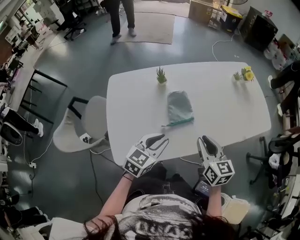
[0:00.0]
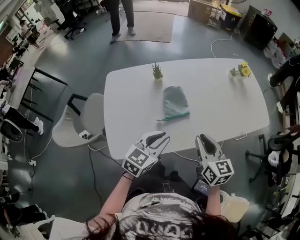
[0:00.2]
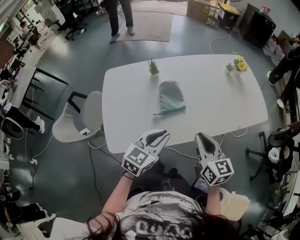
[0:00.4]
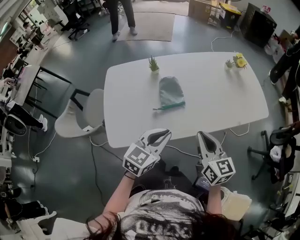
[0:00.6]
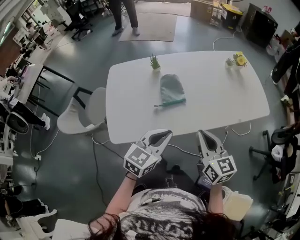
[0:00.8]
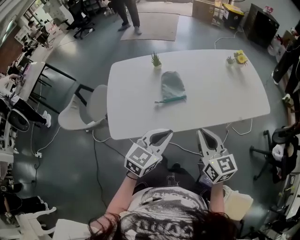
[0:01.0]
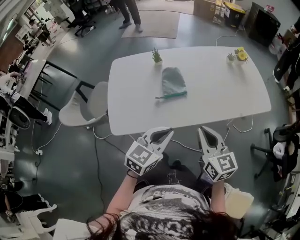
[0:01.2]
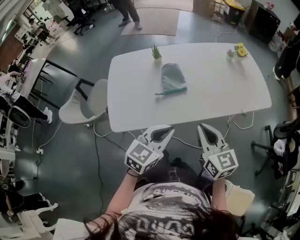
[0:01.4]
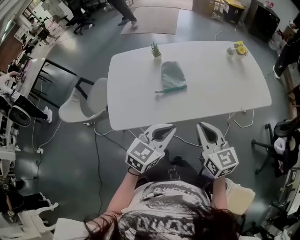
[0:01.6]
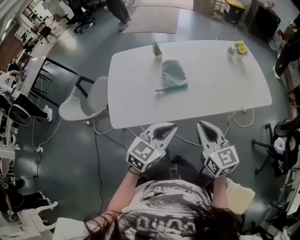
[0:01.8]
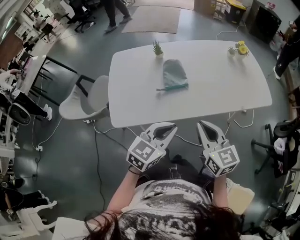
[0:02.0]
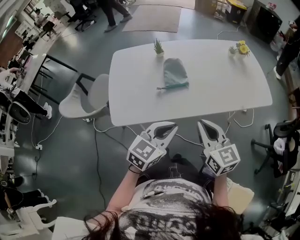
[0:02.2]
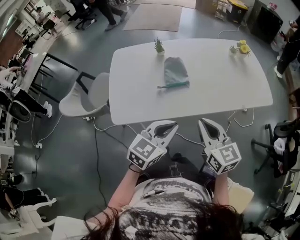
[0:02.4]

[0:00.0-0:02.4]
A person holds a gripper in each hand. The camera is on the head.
0:00.0 to 0:01.2: The right gripper is displaced backward by roughly 10 cm, while the left gripper is displaced backward, to the right and upward by approximately 15 cm.
0:01.2 to 0:02.4: The grippers make only small movements.

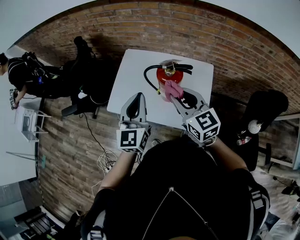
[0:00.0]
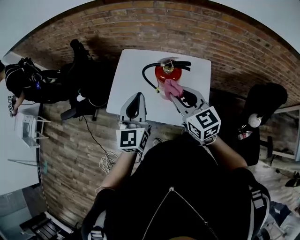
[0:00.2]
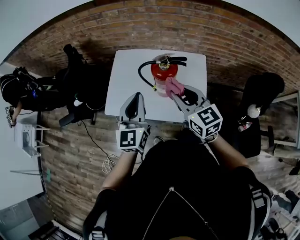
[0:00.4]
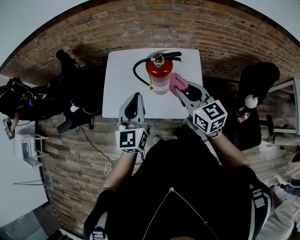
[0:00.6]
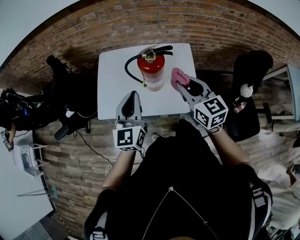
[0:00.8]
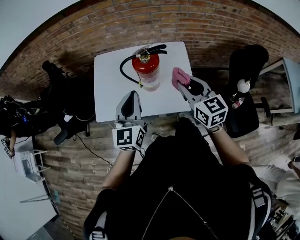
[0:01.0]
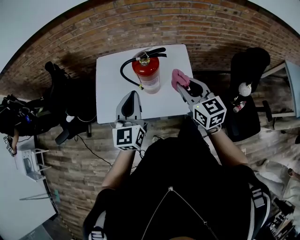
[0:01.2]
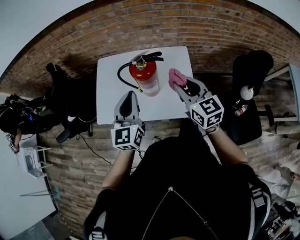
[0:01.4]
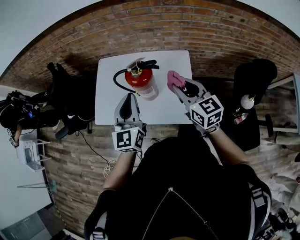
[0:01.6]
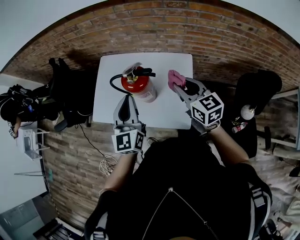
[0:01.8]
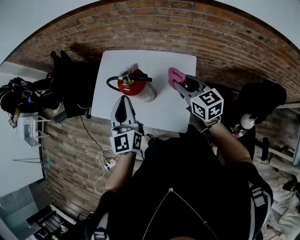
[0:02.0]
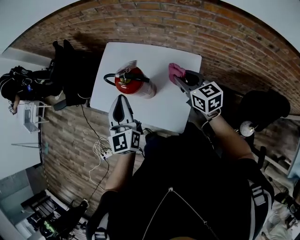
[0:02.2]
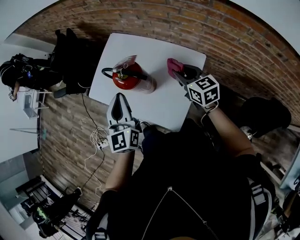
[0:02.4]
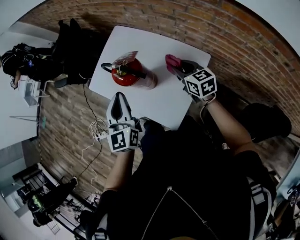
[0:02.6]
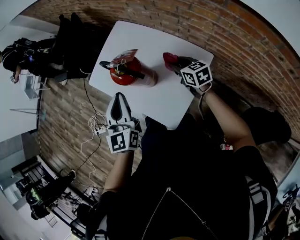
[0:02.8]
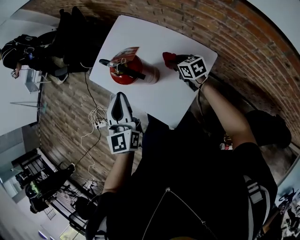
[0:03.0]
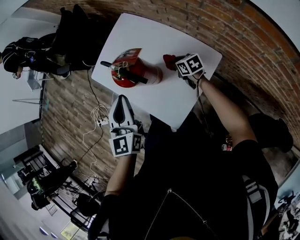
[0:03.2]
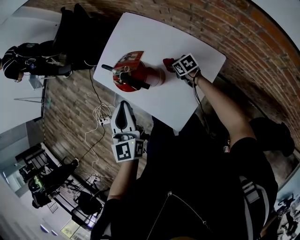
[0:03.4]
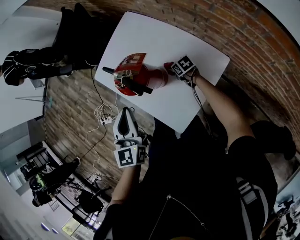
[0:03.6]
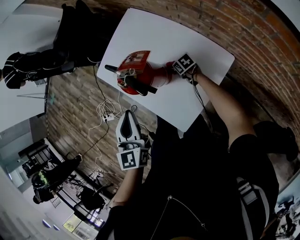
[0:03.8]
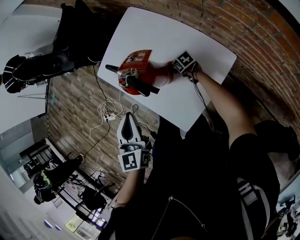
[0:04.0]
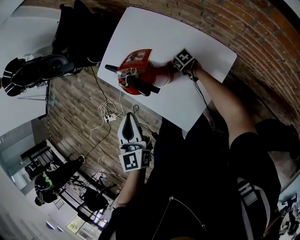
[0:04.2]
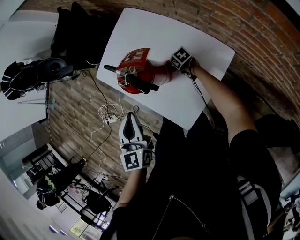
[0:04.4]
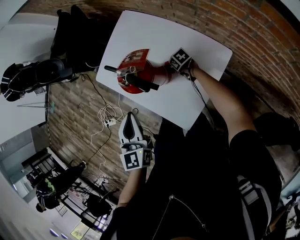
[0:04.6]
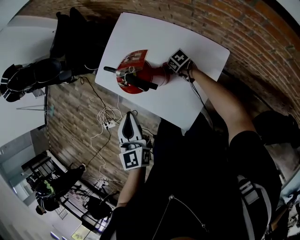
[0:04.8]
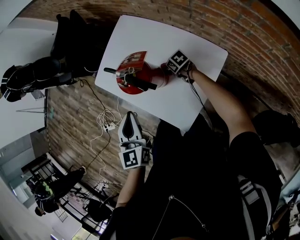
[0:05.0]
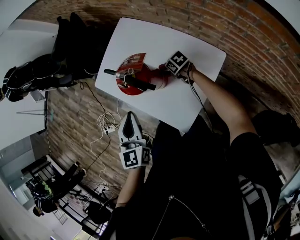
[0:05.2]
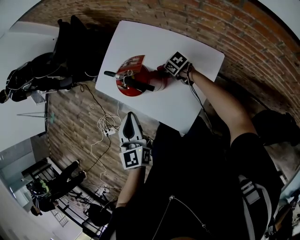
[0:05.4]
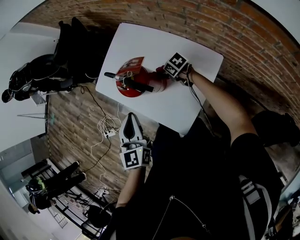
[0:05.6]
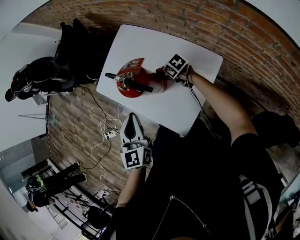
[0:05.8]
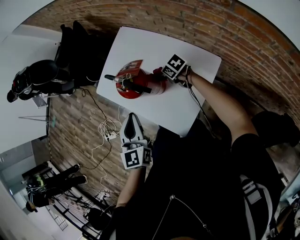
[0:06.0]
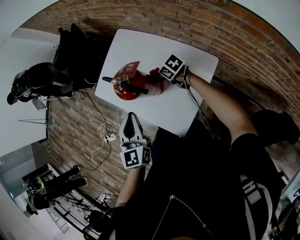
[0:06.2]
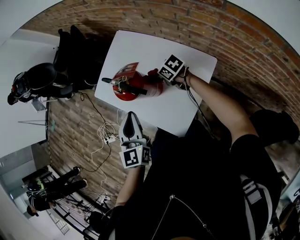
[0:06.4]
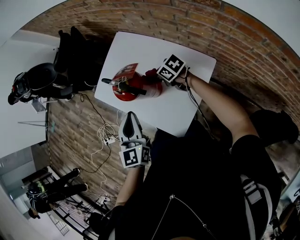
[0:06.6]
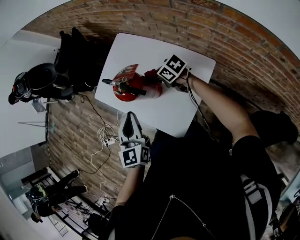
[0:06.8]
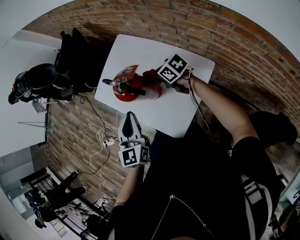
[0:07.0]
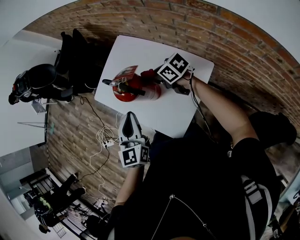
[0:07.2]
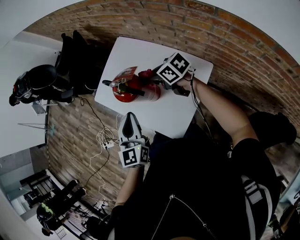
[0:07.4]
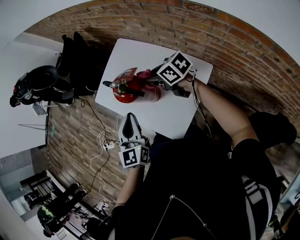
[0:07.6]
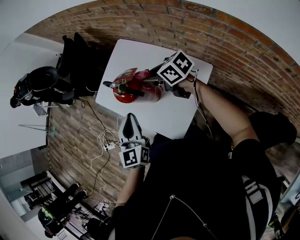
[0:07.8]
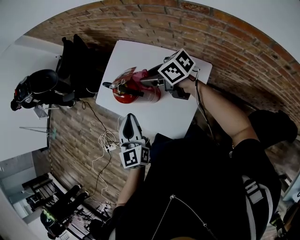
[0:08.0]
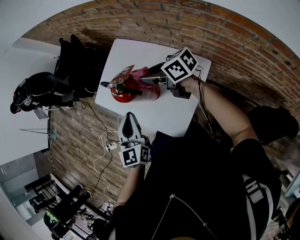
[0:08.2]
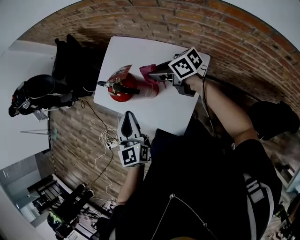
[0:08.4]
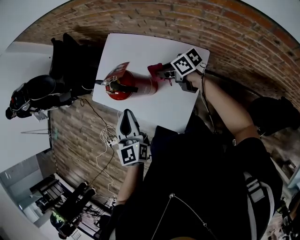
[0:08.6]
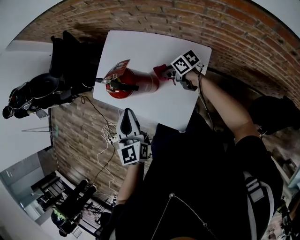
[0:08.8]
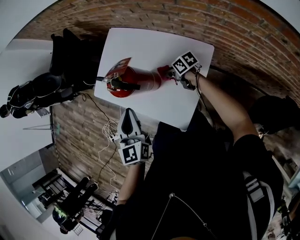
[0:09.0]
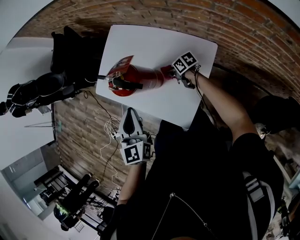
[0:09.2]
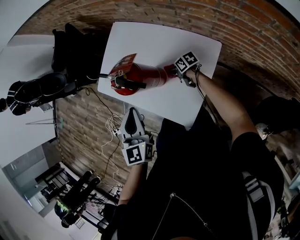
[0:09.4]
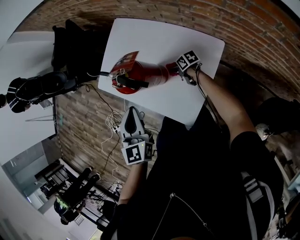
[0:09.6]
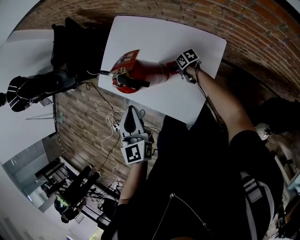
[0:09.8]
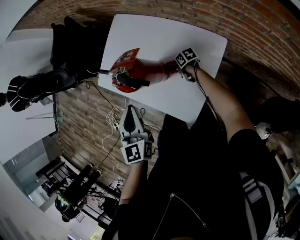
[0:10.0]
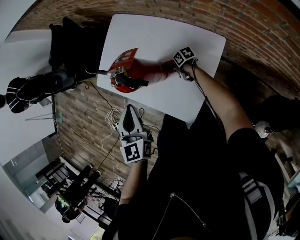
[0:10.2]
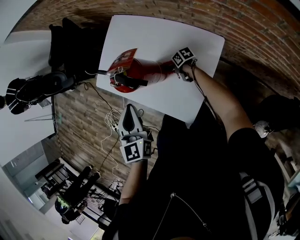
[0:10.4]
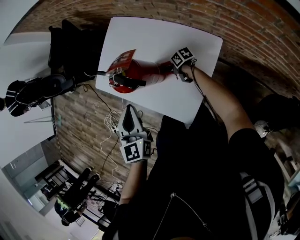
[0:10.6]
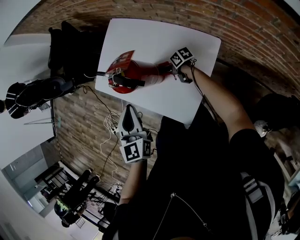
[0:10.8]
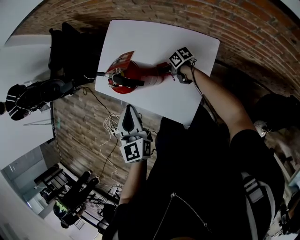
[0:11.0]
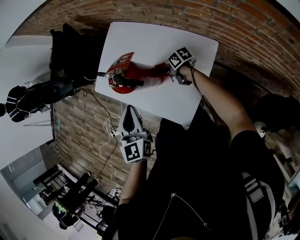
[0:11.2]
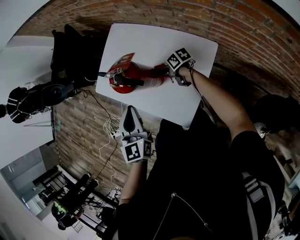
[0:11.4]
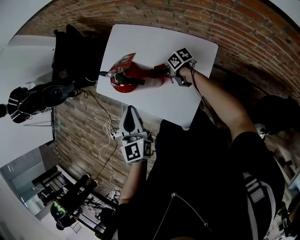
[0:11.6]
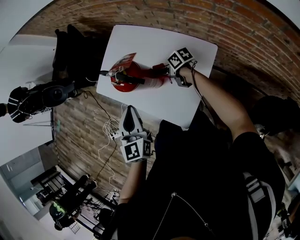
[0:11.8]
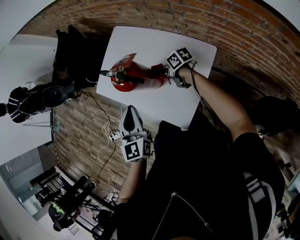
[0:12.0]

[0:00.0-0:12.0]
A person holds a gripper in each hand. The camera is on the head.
0:00.0 to 0:01.6: The left gripper moves to the right, roughly 10 cm. Meanwhile the right gripper moves to the right, roughly 15 cm.
0:01.6 to 0:03.0: The right gripper shifts about 25 cm downward, and rotates approximately 50 degrees. The left gripper moves some 10 cm, and rotates some 40 degrees.
0:03.0 to 0:04.4: The right gripper moves downward, approximately 20 cm, and turns by approximately 30 degrees. Meanwhile the left gripper is displaced downward and to the left by roughly 10 cm.
0:04.4 to 0:06.0: The right gripper travels upward by about 15 cm.
0:06.0 to 0:07.6: The right gripper travels upward by about 20 cm.
0:07.6 to 0:09.0: The right gripper shifts roughly 20 cm downward, and changes its angle by approximately 30 degrees.
0:09.0 to 0:10.4: The right gripper shifts approximately 10 cm downward.
0:10.4 to 0:12.0: The right gripper shifts approximately 15 cm upward.

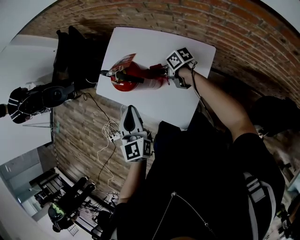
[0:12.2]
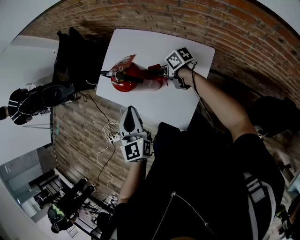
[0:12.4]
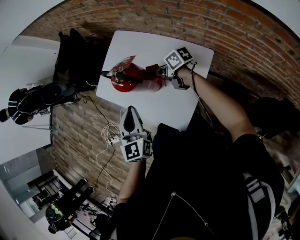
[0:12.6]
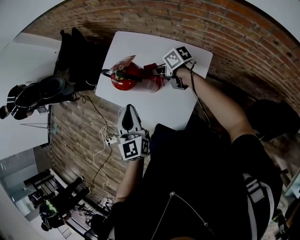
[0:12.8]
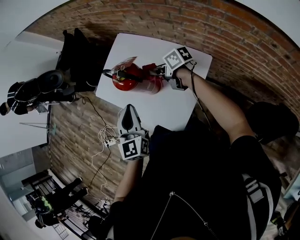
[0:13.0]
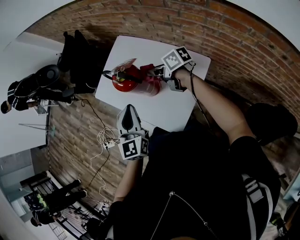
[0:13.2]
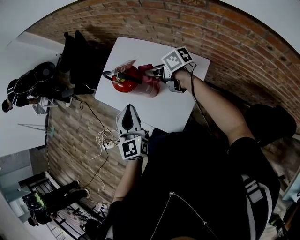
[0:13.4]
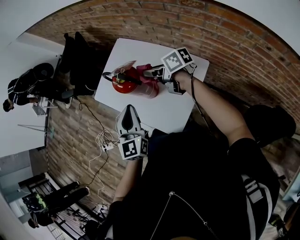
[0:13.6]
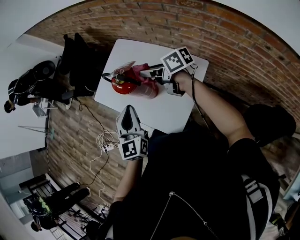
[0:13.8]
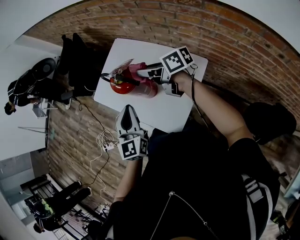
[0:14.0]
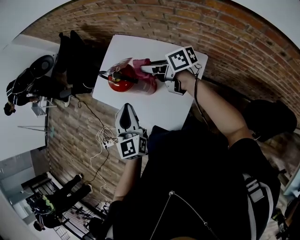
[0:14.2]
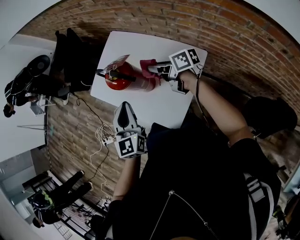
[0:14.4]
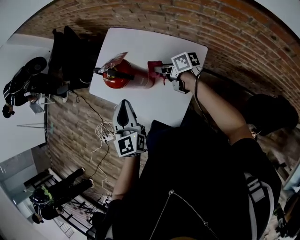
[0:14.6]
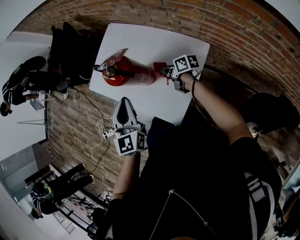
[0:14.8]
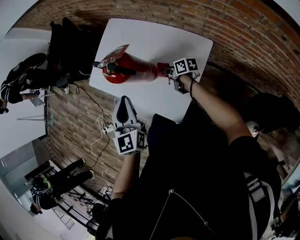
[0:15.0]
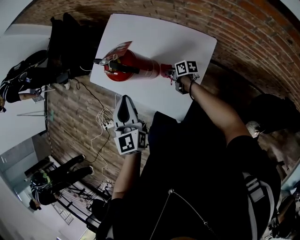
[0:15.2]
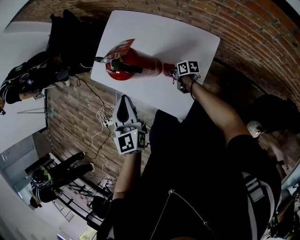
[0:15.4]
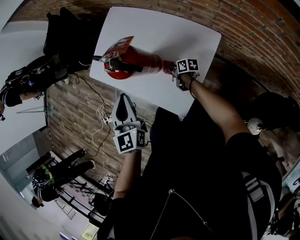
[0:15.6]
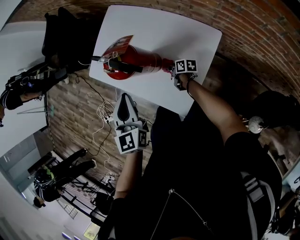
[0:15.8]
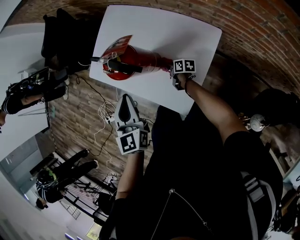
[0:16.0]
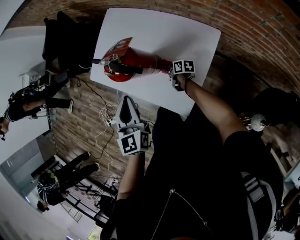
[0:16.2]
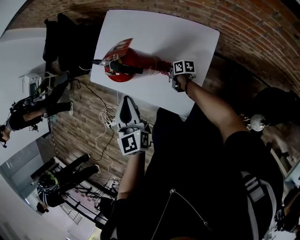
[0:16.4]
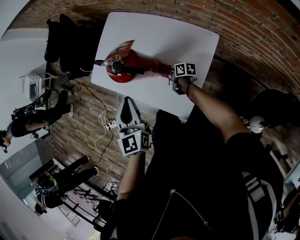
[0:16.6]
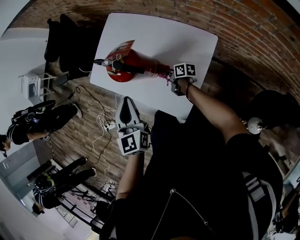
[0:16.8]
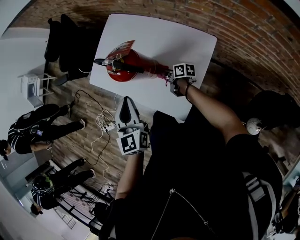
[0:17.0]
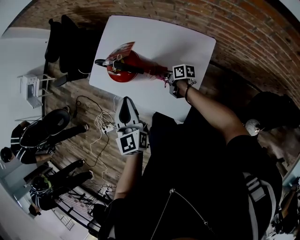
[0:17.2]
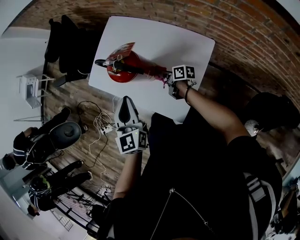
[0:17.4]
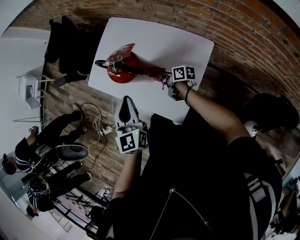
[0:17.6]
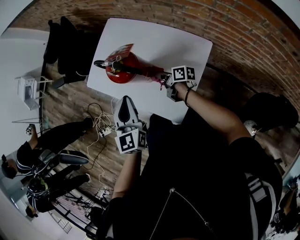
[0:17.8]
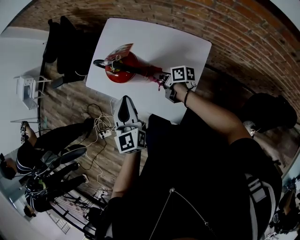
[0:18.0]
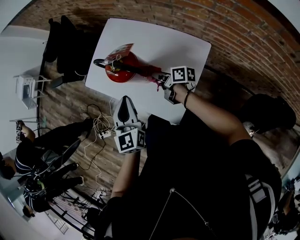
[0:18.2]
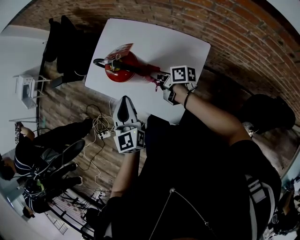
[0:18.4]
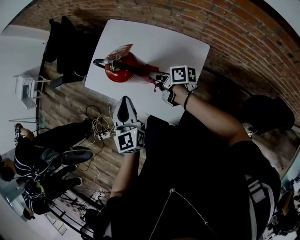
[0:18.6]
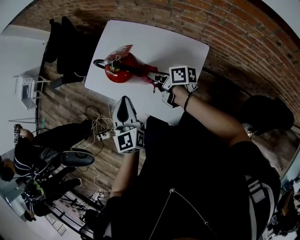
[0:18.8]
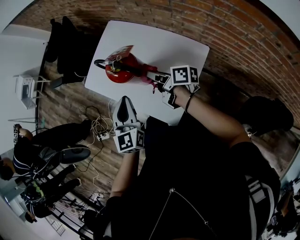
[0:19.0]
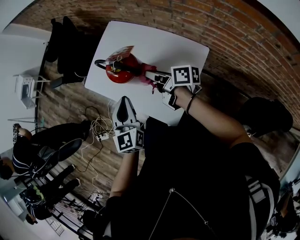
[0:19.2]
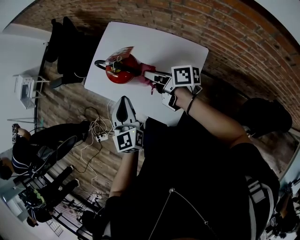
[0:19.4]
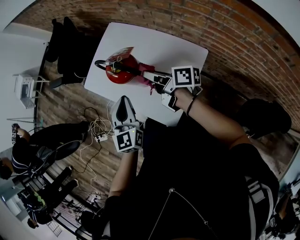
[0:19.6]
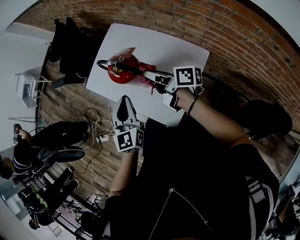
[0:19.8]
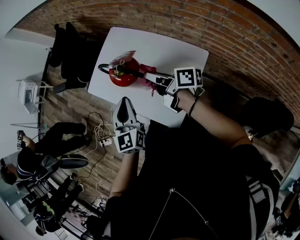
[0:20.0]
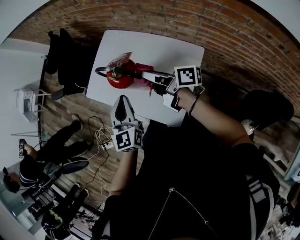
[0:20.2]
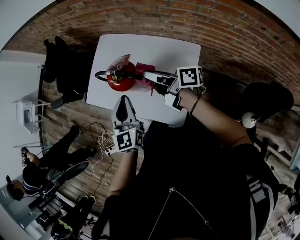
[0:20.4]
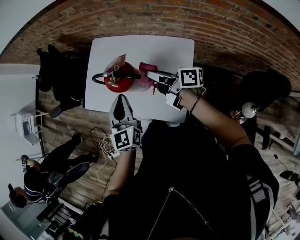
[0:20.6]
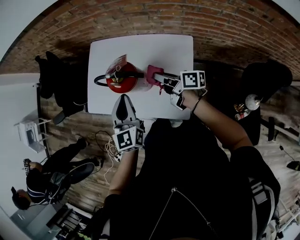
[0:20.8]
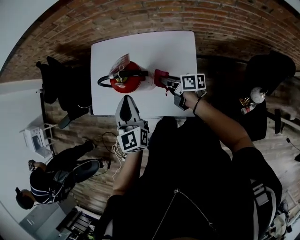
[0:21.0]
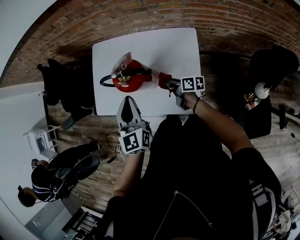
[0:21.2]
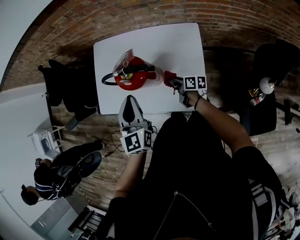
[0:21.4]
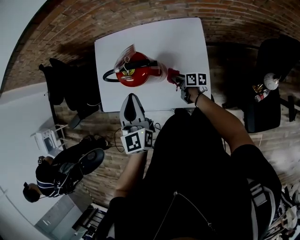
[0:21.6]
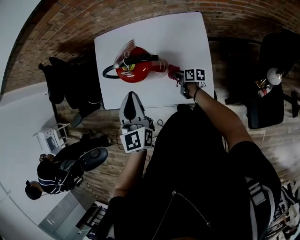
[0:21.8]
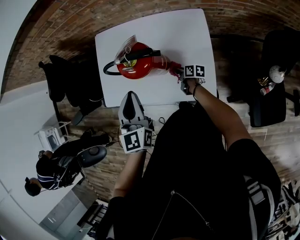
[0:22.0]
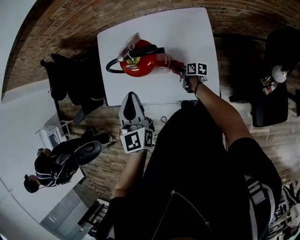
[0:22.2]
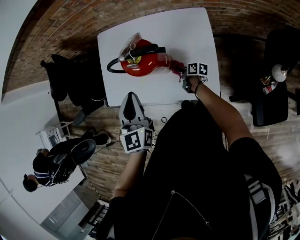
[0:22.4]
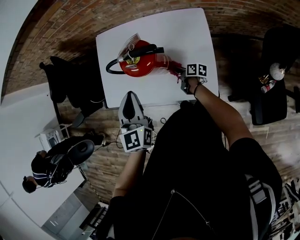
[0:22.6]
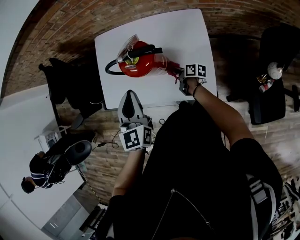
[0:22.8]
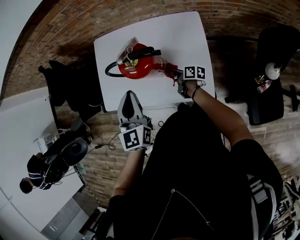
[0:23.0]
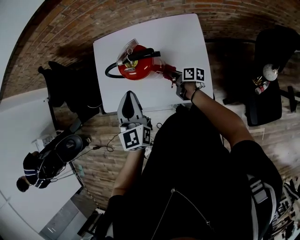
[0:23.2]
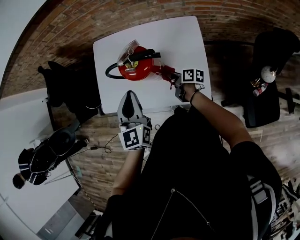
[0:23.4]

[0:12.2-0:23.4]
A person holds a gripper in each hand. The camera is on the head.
0:12.2 to 0:13.8: The right gripper heads upward, covering roughly 20 cm.
0:13.8 to 0:15.4: The right gripper heads downward, covering roughly 35 cm, and rotates some 30 degrees. The left gripper ends up some 5 cm from where it was.
0:15.4 to 0:17.0: The grippers move only a little.
0:17.0 to 0:18.6: The right gripper is displaced upward by roughly 15 cm.
0:18.6 to 0:20.2: The right gripper travels upward by approximately 15 cm.
0:20.2 to 0:21.8: The left gripper heads to the left, covering approximately 5 cm, and rotates some 20 degrees. The right gripper travels downward by approximately 35 cm, and tips its fingers downward by roughly 30 degrees.
0:21.8 to 0:23.4: The right gripper shifts approximately 10 cm upward.
